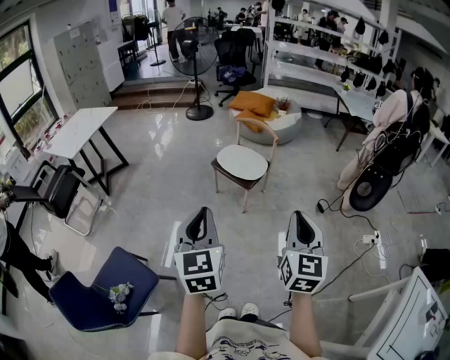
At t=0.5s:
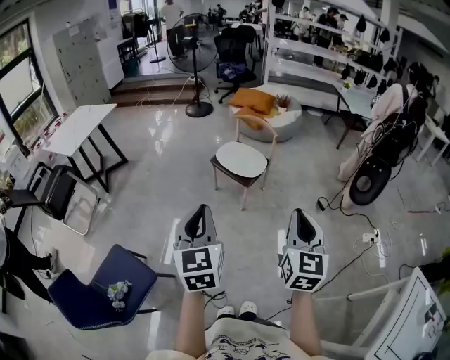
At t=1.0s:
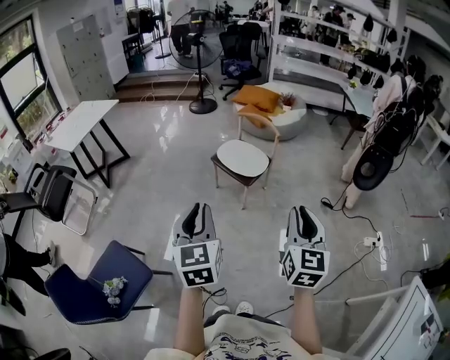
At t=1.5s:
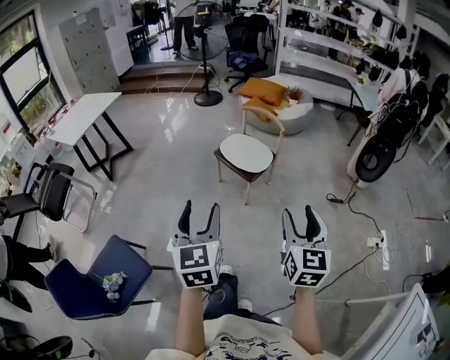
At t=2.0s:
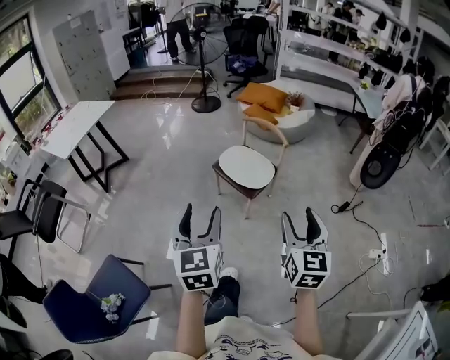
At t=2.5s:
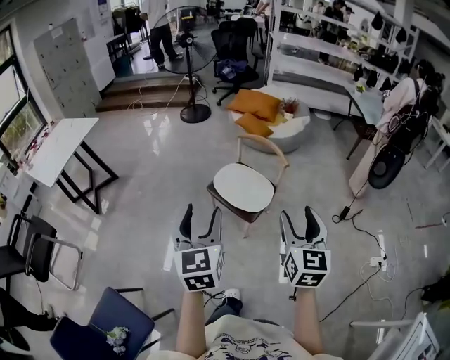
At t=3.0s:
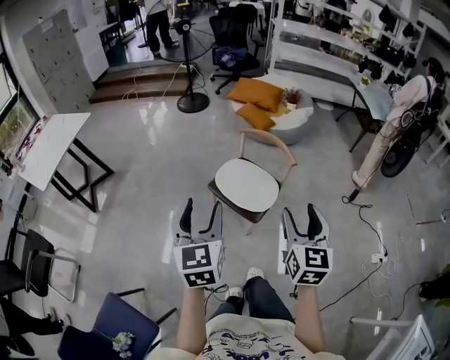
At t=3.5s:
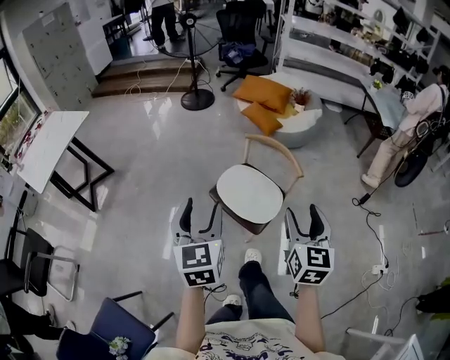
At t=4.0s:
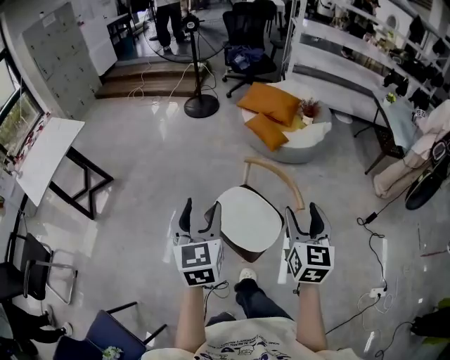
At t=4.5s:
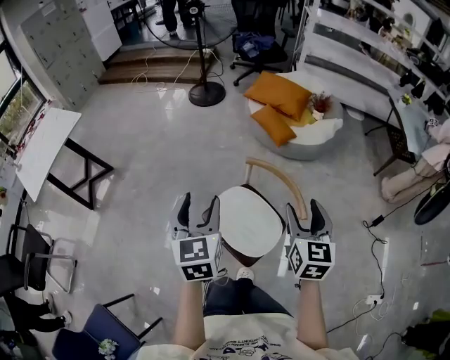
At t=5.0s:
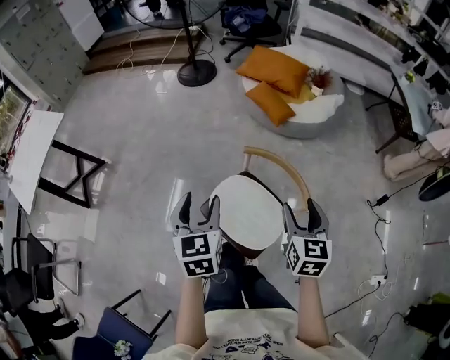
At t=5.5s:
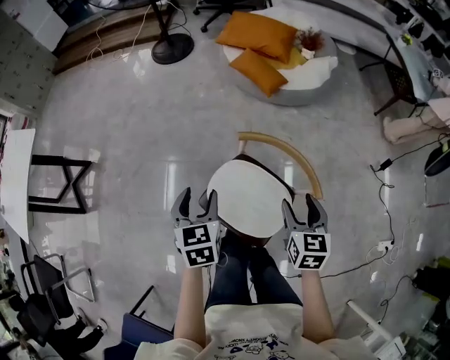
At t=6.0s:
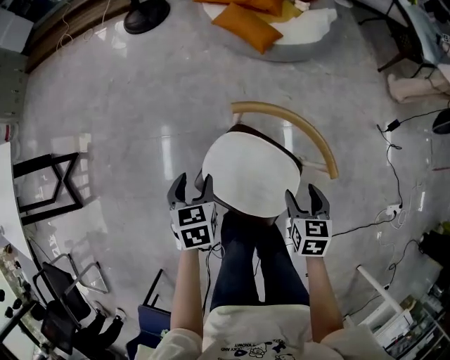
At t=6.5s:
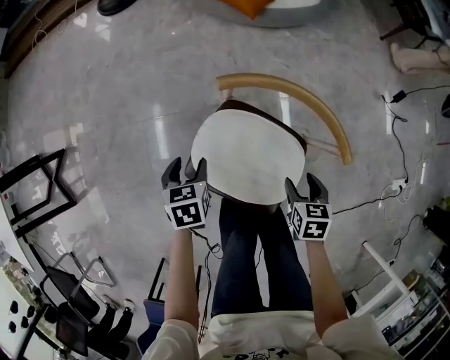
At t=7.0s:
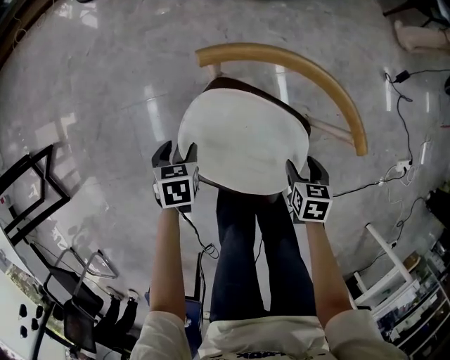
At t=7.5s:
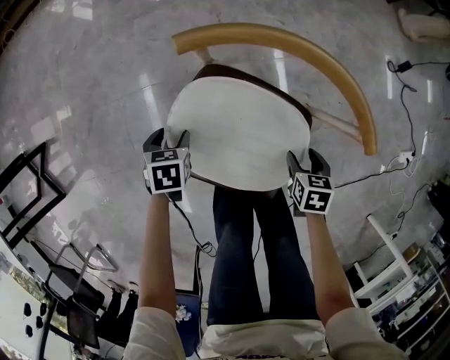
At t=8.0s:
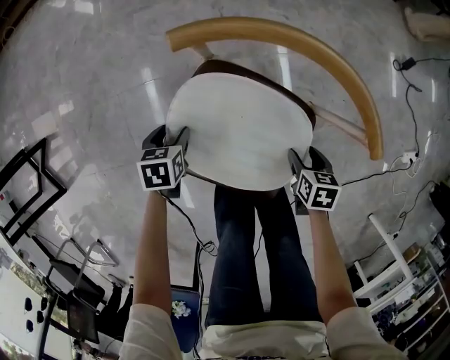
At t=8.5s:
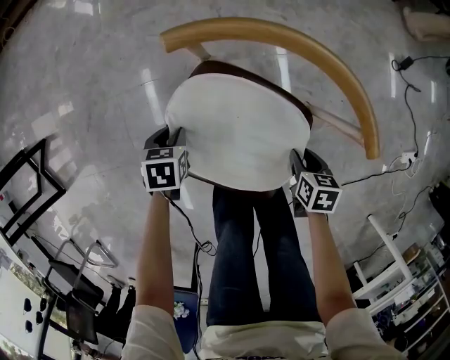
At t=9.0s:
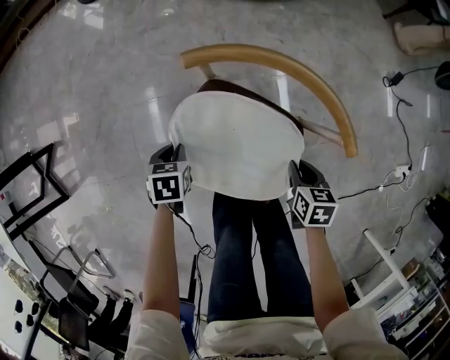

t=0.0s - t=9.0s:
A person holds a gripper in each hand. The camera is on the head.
t=0.0s - t=2.0s: Both grippers travel together forward, approximately 20 cm. The right gripper opens up. Meanwhile the left gripper opens its fingers.
t=2.0s - t=4.5s: The two grippers travel together, forward, approximately 70 cm.
t=4.5s - t=7.0s: Both grippers move downward, approximately 60 cm. The right gripper tips its fingers downward by approximately 50 degrees. The left gripper angles its fingers downward, by approximately 50 degrees.
t=7.0s - t=9.0s: The left gripper closes its fingers, while the right gripper reaches about 5 cm downward, then returns, and closes its fingers.

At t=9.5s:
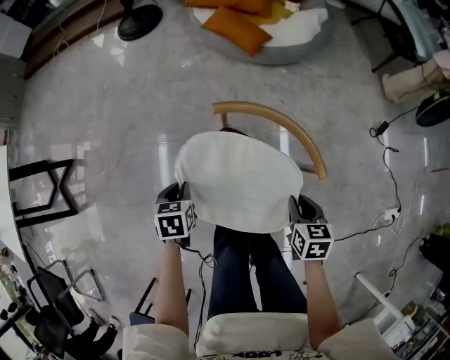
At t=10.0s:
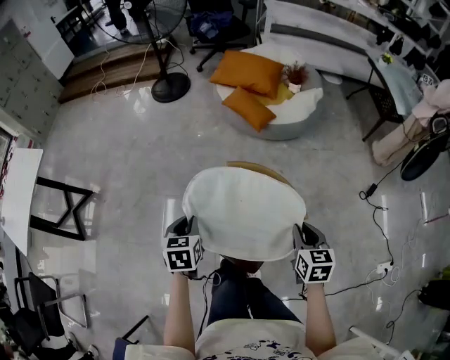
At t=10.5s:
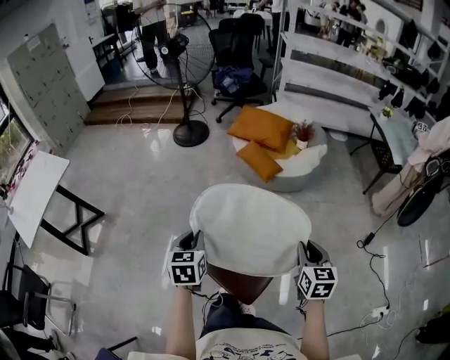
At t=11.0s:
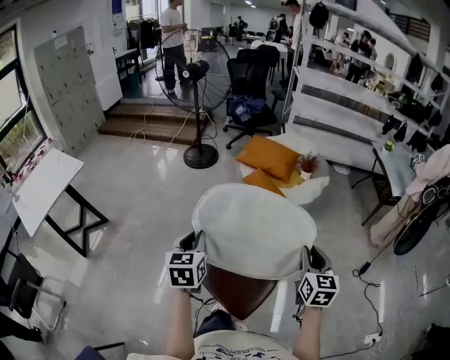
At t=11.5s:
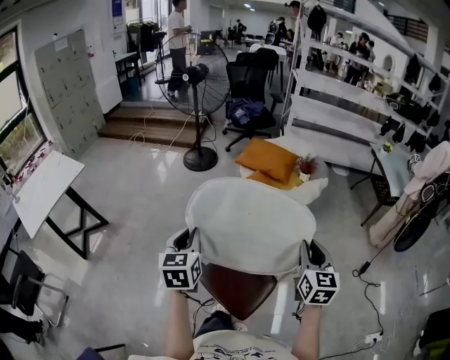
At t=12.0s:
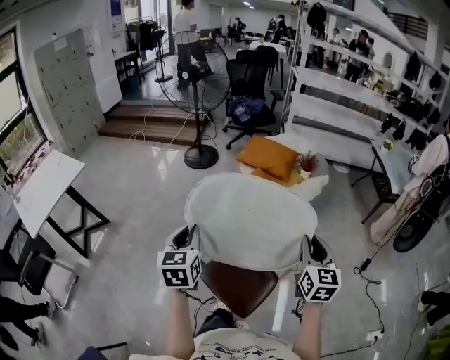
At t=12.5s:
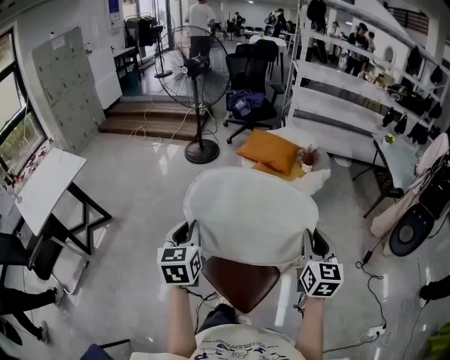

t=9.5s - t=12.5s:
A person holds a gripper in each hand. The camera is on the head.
t=9.5s - t=11.0s: Both grippers travel together upward, some 40 cm. The left gripper angles its fingers upward, by about 40 degrees. Meanwhile the right gripper points its fingers some 40 degrees further upward.
t=11.0s - t=12.5s: The left gripper moves about 5 cm. The right gripper travels upward by some 5 cm.

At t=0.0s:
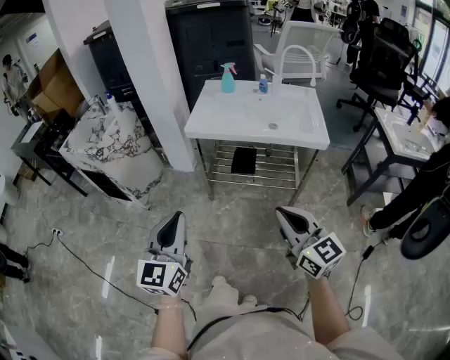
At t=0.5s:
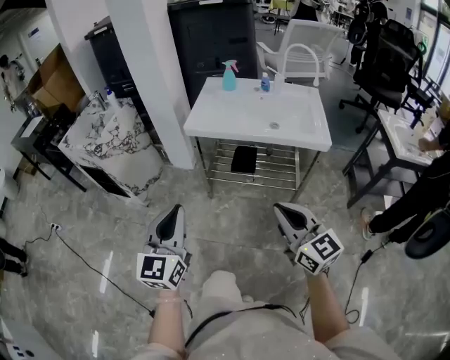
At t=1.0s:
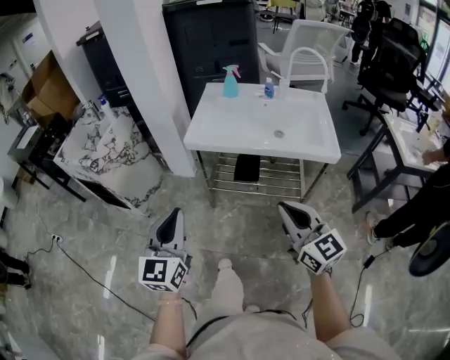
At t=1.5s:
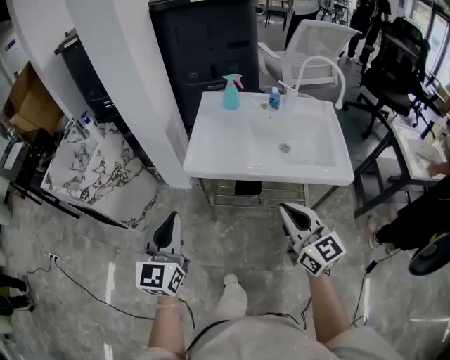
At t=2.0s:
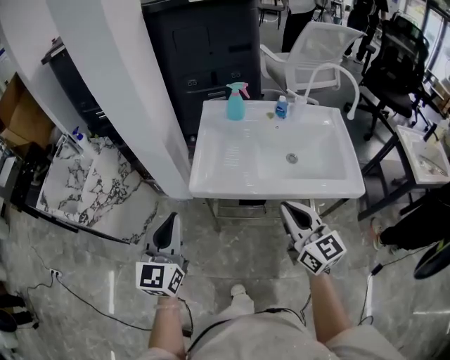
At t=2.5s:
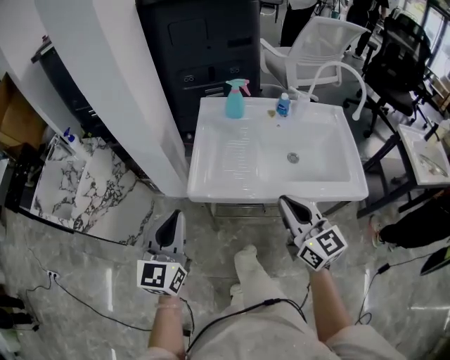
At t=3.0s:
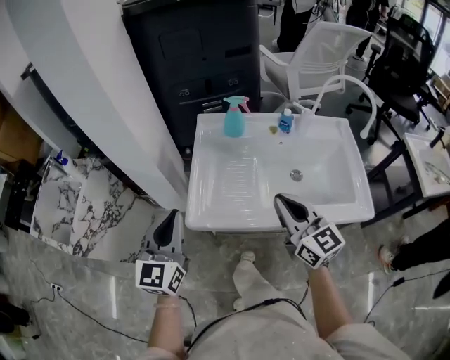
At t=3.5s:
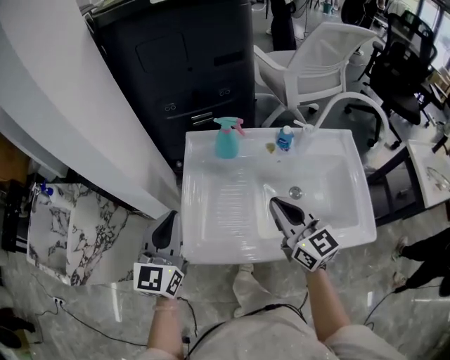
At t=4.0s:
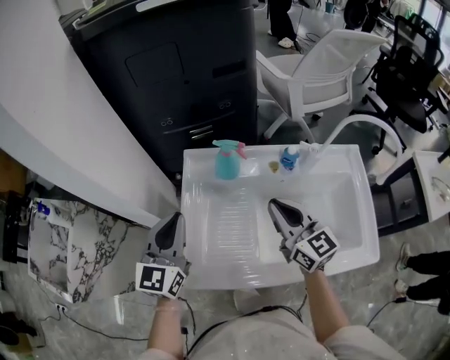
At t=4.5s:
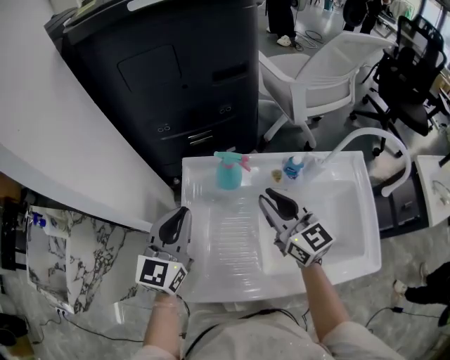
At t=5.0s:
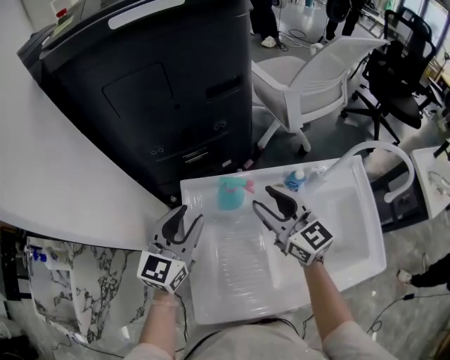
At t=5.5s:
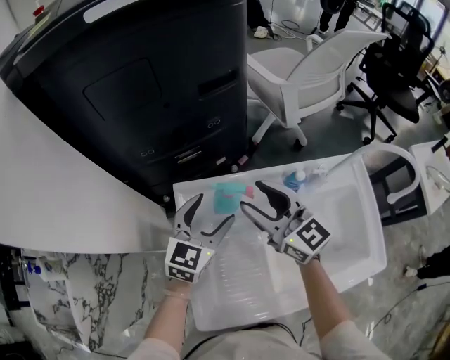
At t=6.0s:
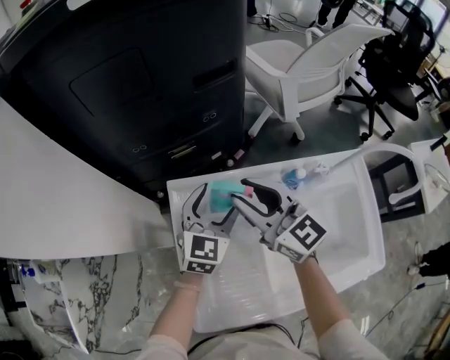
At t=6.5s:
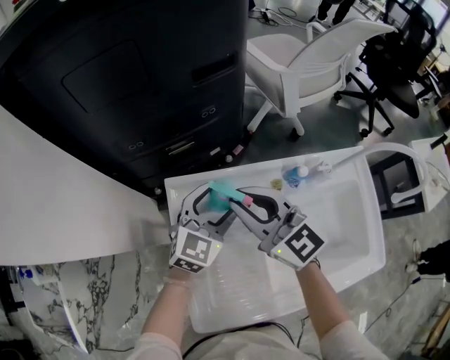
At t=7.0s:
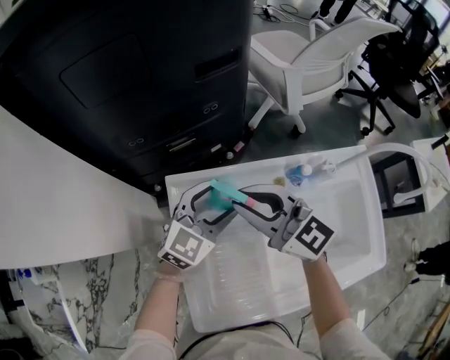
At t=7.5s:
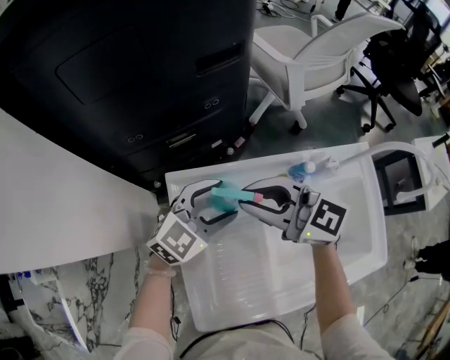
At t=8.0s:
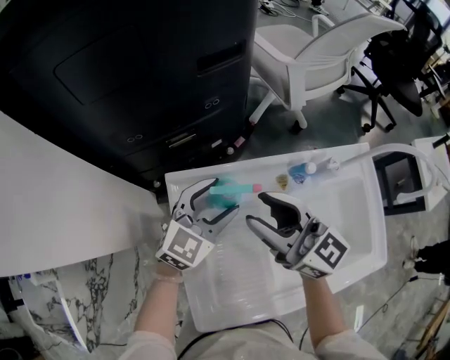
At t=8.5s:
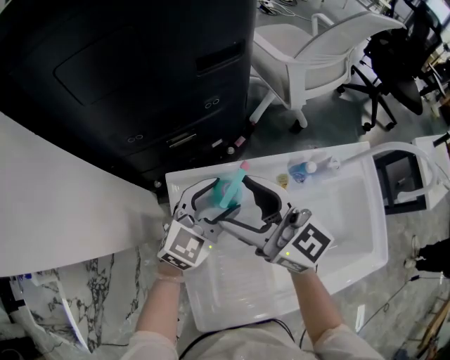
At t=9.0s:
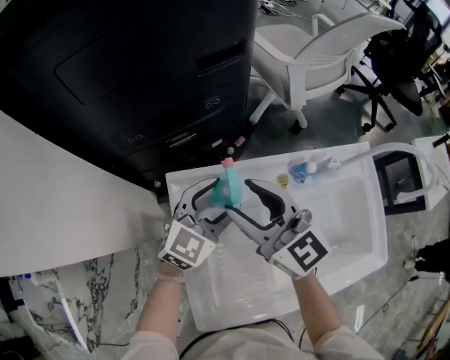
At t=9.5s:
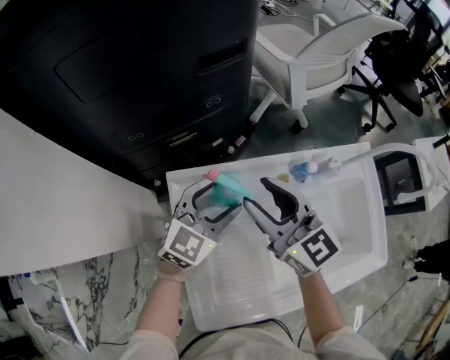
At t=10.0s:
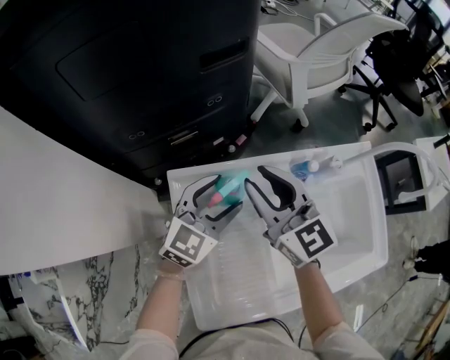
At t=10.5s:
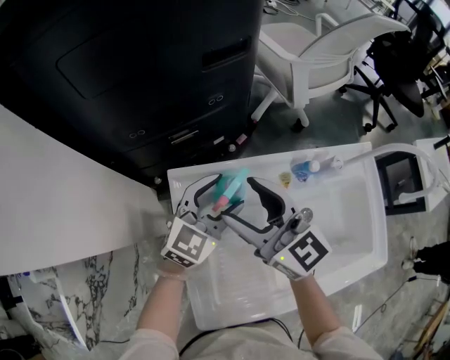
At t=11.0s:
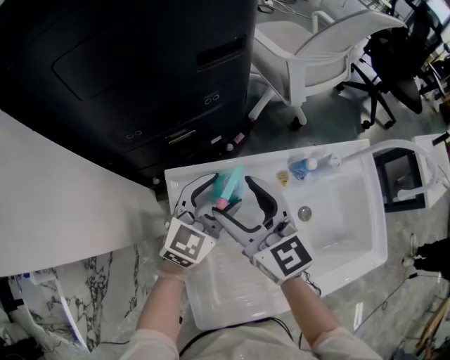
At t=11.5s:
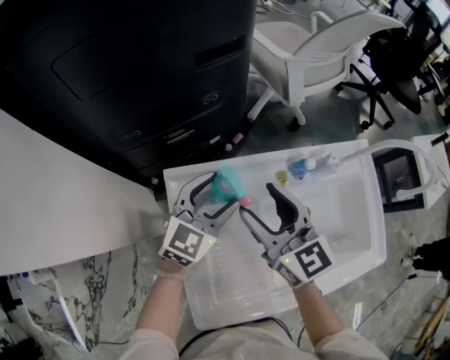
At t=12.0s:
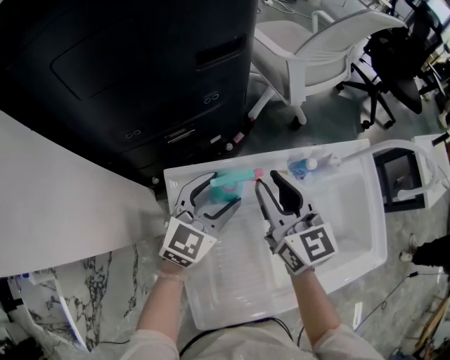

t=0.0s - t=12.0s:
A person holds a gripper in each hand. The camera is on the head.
t=0.0s - t=2.0s: The two grippers go about 35 cm forward.
t=2.0s - t=4.0s: Both grippers travel together forward, some 30 cm.
t=4.0s - t=6.0s: The left gripper moves forward, to the right and downward, about 25 cm, turns by approximately 20 degrees, and opens its fingers. Meanwhile the right gripper heads forward and to the left, covering about 15 cm, and opens its fingers.
t=6.0s - t=8.0s: The left gripper changes its angle by some 20 degrees.
t=8.0s - t=10.0s: The right gripper shifts about 5 cm forward, turns by some 20 degrees, and opens and closes again.
t=10.0s - t=12.0s: The right gripper opens, then closes once more.

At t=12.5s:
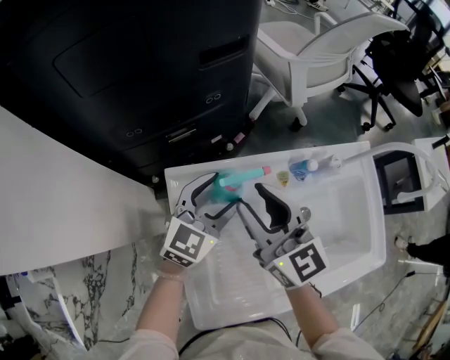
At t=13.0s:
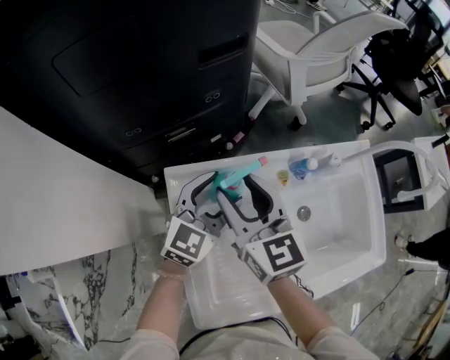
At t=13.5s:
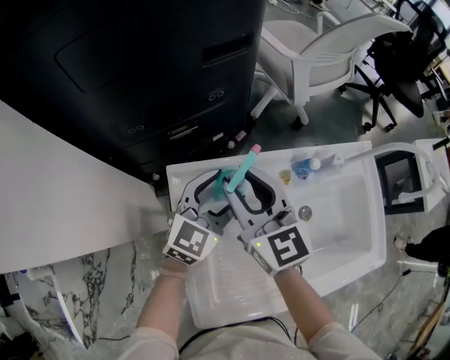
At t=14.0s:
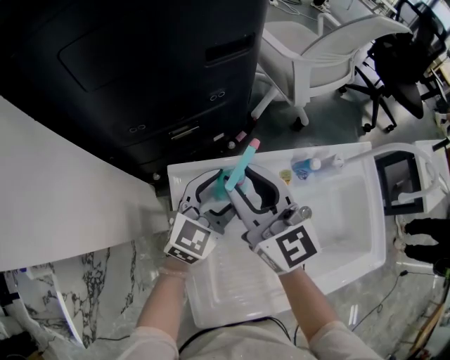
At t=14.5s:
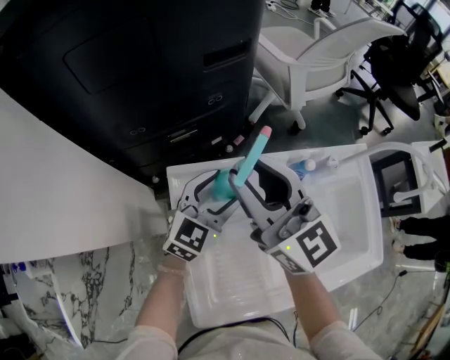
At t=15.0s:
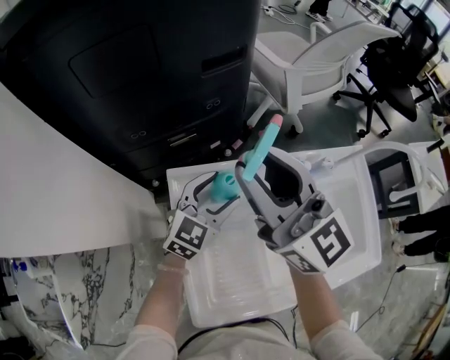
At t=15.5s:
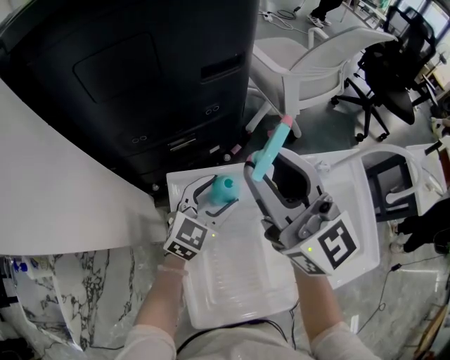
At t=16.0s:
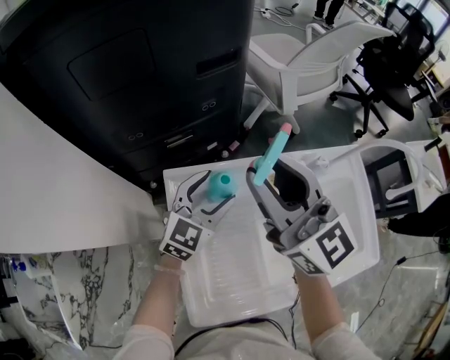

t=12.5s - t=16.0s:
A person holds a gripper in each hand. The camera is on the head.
t=12.5s - t=14.5s: The right gripper shifts approximately 10 cm upward.
t=14.5s - t=16.0s: The right gripper moves approximately 5 cm.
